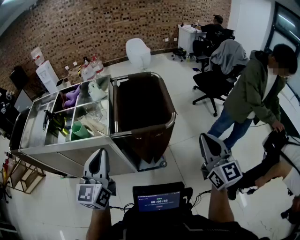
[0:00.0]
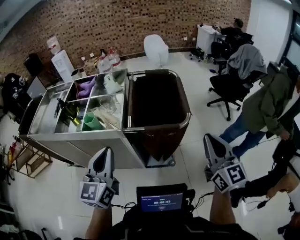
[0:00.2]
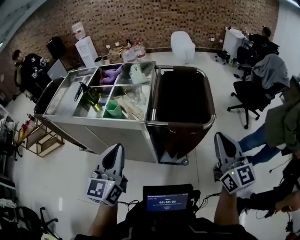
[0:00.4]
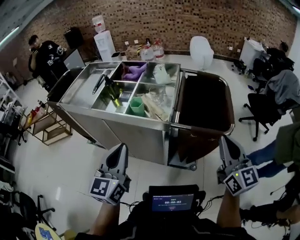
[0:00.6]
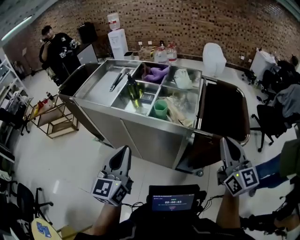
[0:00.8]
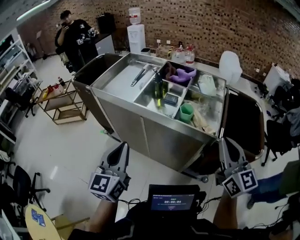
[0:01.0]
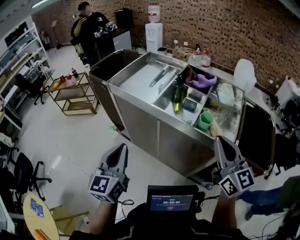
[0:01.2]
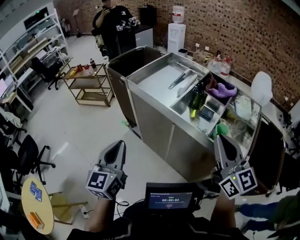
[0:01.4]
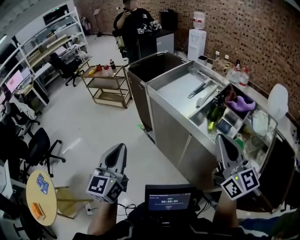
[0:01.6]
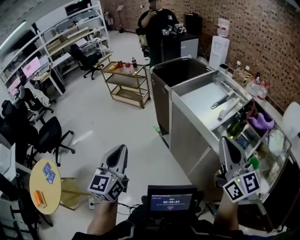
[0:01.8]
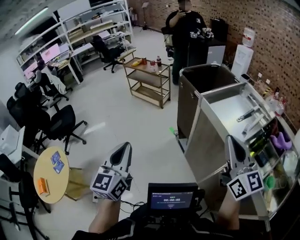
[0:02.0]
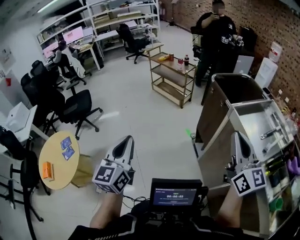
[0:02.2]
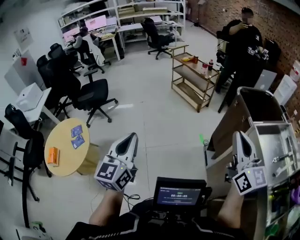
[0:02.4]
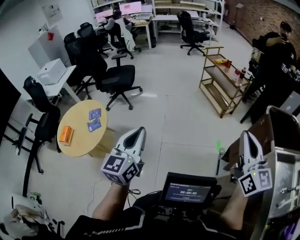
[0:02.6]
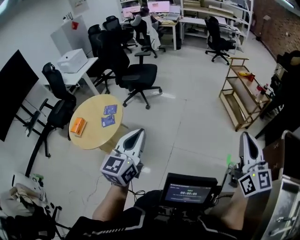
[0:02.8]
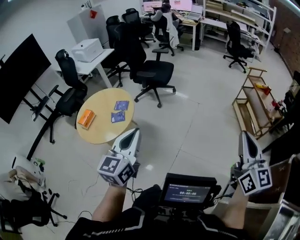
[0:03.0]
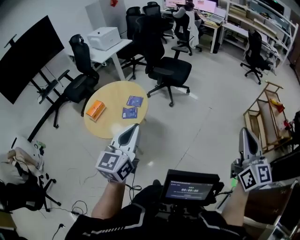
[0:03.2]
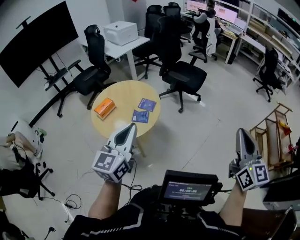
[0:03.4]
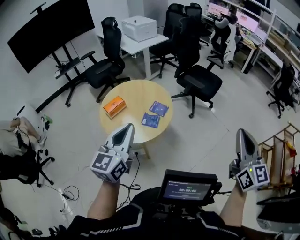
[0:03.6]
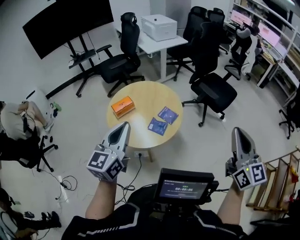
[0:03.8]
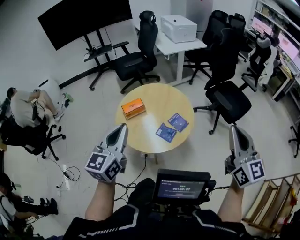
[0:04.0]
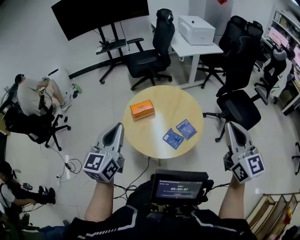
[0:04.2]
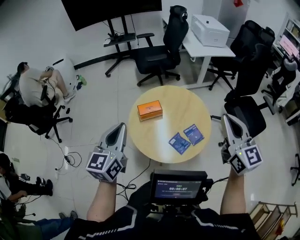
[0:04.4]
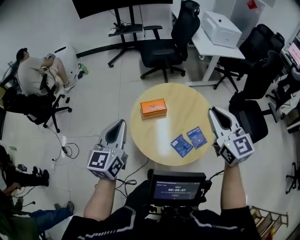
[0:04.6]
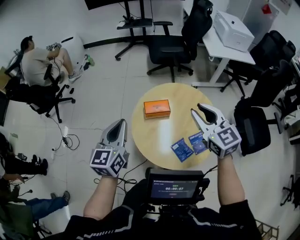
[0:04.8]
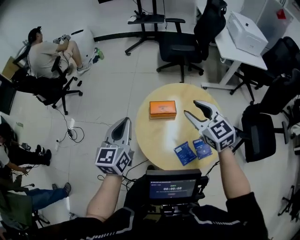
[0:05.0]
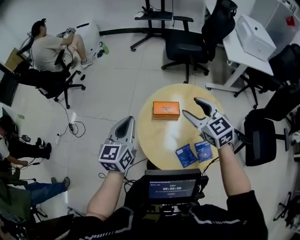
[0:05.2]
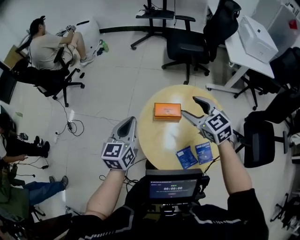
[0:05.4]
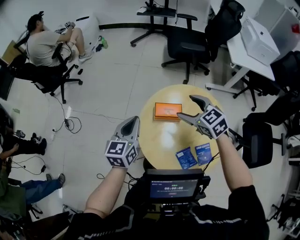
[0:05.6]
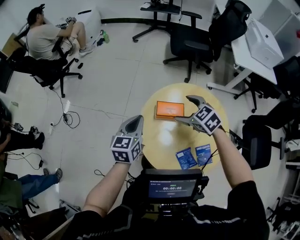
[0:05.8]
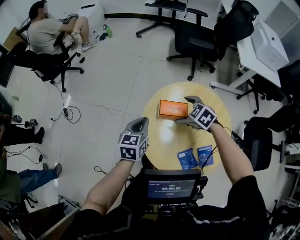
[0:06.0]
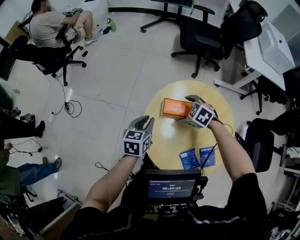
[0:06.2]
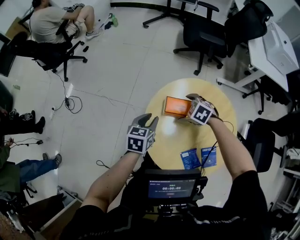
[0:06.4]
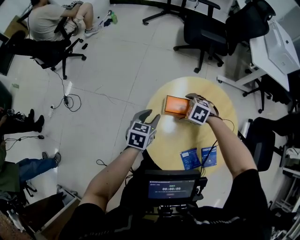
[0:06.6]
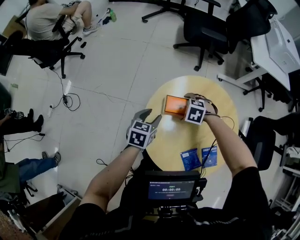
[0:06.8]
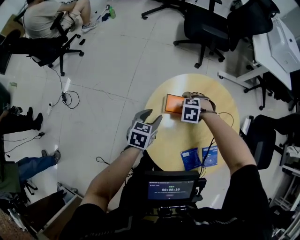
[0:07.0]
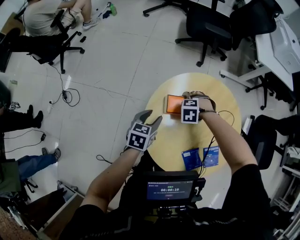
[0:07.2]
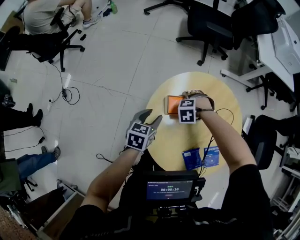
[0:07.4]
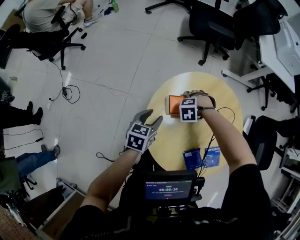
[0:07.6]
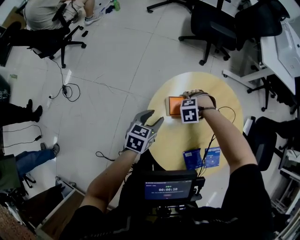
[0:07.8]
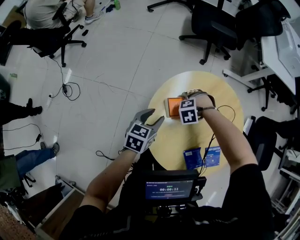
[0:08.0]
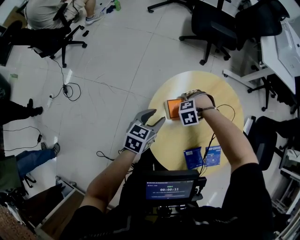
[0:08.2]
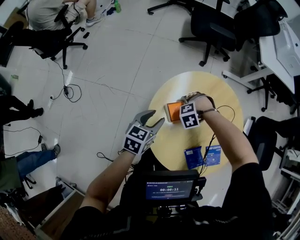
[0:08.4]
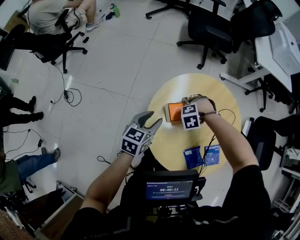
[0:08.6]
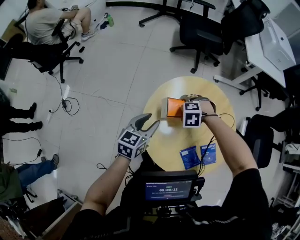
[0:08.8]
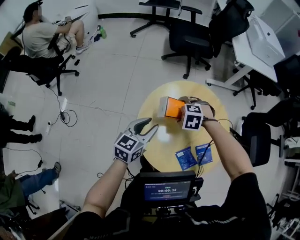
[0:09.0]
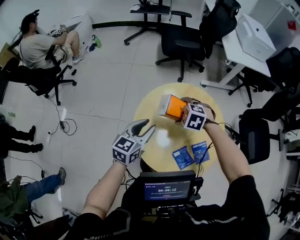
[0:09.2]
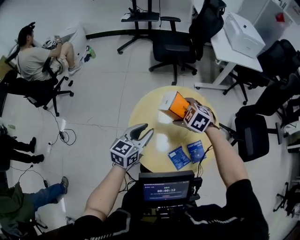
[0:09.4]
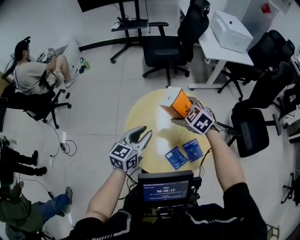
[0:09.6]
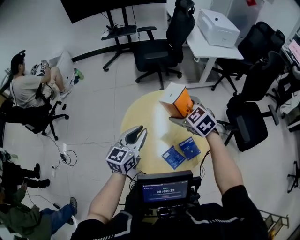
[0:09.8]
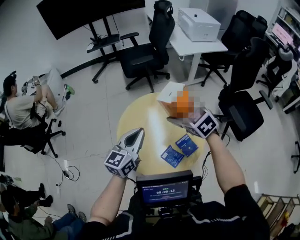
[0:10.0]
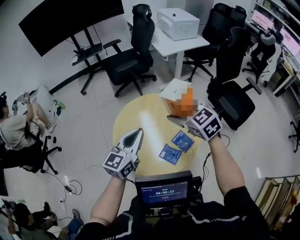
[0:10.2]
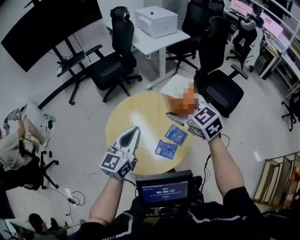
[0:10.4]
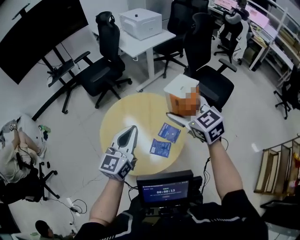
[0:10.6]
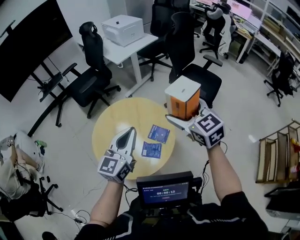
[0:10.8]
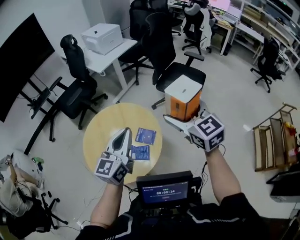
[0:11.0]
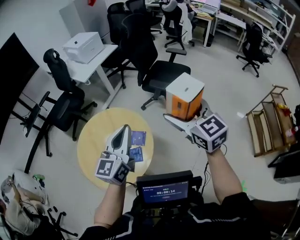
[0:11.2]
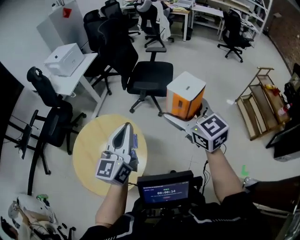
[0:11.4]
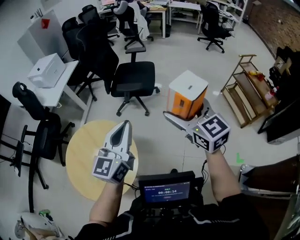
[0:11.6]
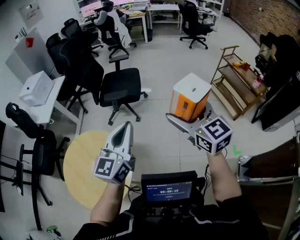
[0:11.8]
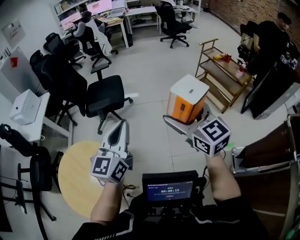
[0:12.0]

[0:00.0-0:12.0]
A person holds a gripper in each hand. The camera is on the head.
0:00.0 to 0:01.6: The pair of grippers is taken approximately 70 cm. The left gripper swivels roughly 50 degrees; the right gripper rotates approximately 60 degrees.
0:01.6 to 0:03.0: Both grippers are carried some 90 cm. The left gripper rotates about 70 degrees; the right gripper swivels approximately 60 degrees.
0:03.0 to 0:04.4: Both grippers are carried roughly 90 cm. The right gripper turns by roughly 70 degrees. Meanwhile the left gripper swivels approximately 60 degrees.
0:04.4 to 0:06.0: The left gripper heads downward, covering some 30 cm, and changes its angle by some 30 degrees, while the right gripper changes place by some 60 cm, tilts its fingers about 50 degrees downward, and opens.
0:06.0 to 0:07.6: The two grippers go roughly 20 cm downward. The right gripper tips its fingers downward by roughly 30 degrees; the left gripper opens.
0:07.6 to 0:09.0: The two grippers go some 15 cm upward. The left gripper swivels approximately 20 degrees; the right gripper swivels some 30 degrees.
0:09.0 to 0:10.4: The right gripper moves about 50 cm, and tips its fingers upward by roughly 50 degrees. The left gripper shifts by about 35 cm, turns by approximately 30 degrees, and closes its fingers.
0:10.4 to 0:12.0: The pair of grippers is taken roughly 70 cm. The left gripper changes its angle by approximately 50 degrees; the right gripper swivels some 70 degrees.

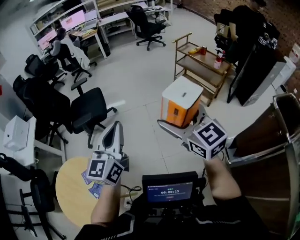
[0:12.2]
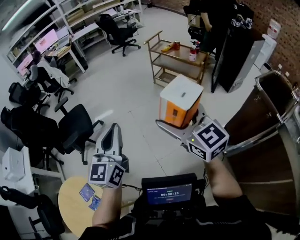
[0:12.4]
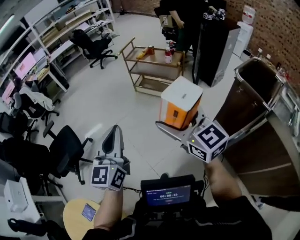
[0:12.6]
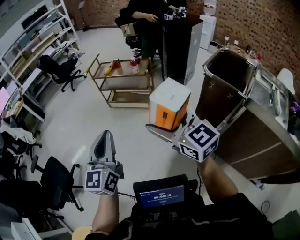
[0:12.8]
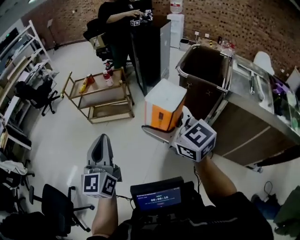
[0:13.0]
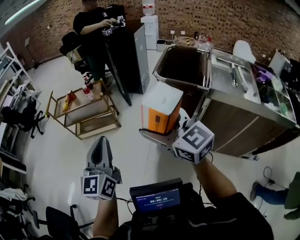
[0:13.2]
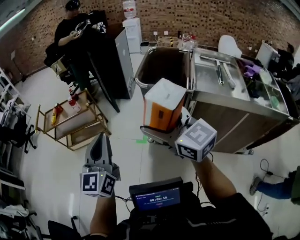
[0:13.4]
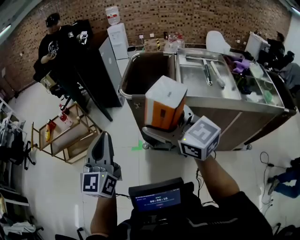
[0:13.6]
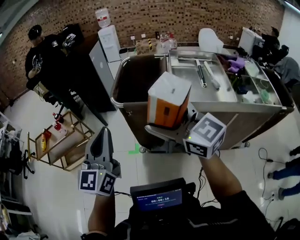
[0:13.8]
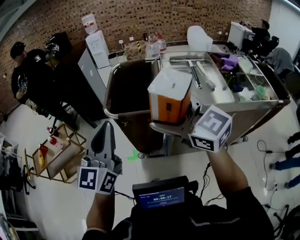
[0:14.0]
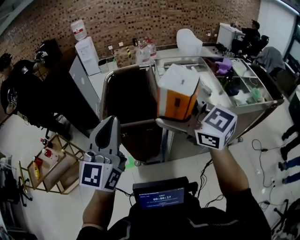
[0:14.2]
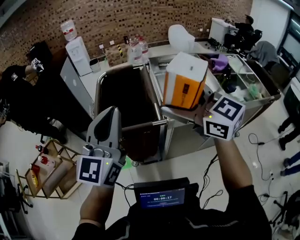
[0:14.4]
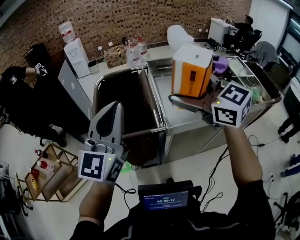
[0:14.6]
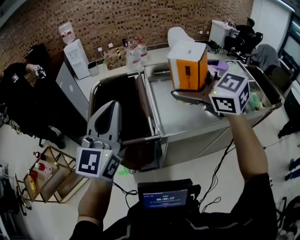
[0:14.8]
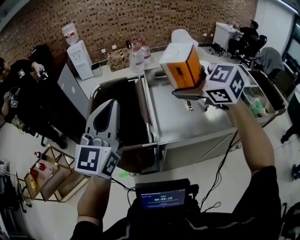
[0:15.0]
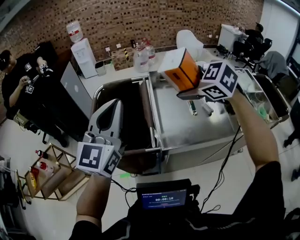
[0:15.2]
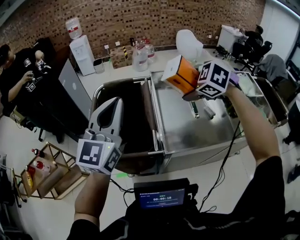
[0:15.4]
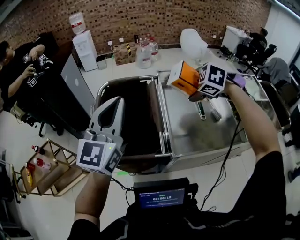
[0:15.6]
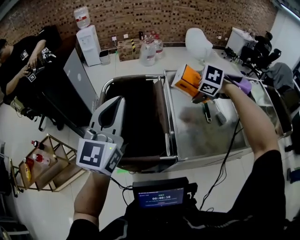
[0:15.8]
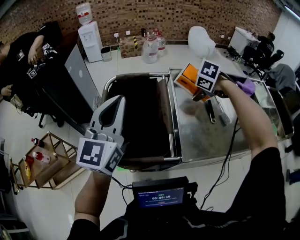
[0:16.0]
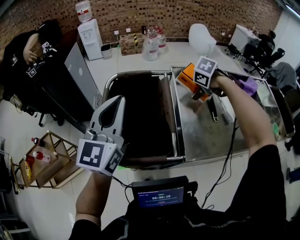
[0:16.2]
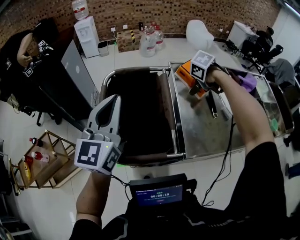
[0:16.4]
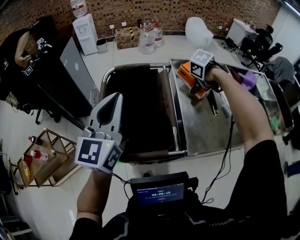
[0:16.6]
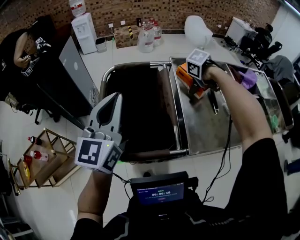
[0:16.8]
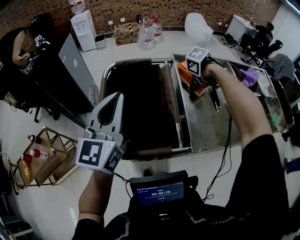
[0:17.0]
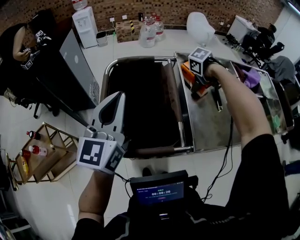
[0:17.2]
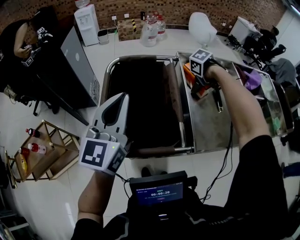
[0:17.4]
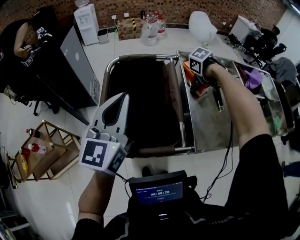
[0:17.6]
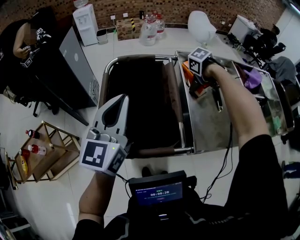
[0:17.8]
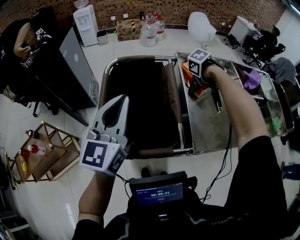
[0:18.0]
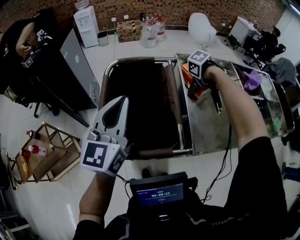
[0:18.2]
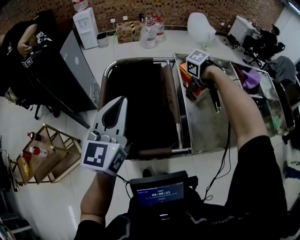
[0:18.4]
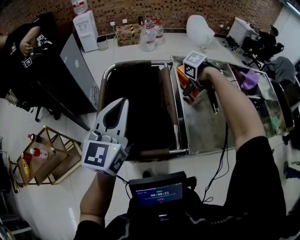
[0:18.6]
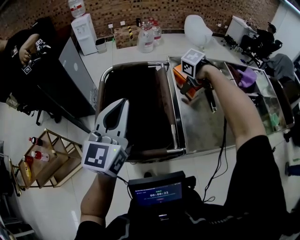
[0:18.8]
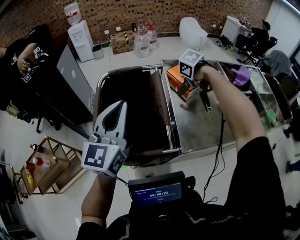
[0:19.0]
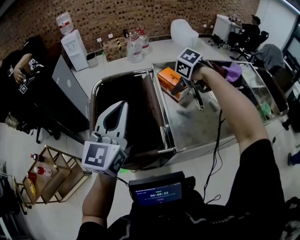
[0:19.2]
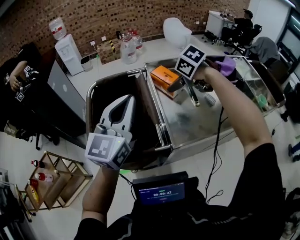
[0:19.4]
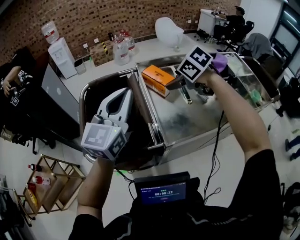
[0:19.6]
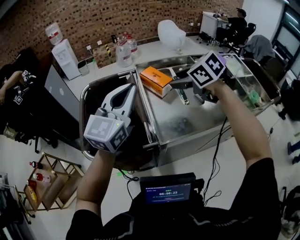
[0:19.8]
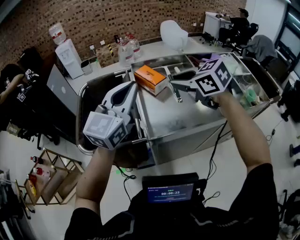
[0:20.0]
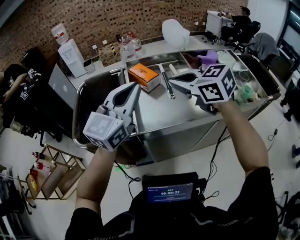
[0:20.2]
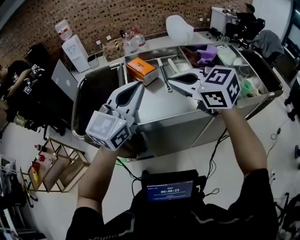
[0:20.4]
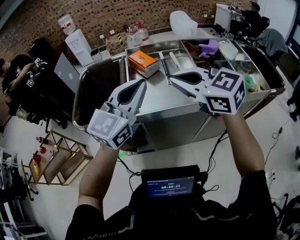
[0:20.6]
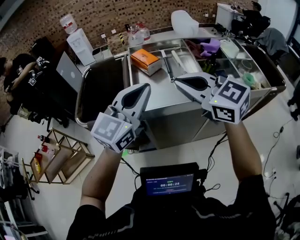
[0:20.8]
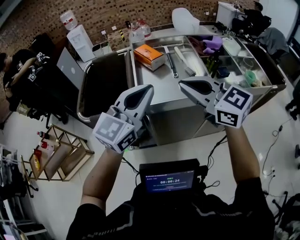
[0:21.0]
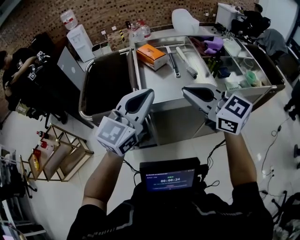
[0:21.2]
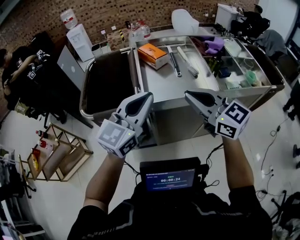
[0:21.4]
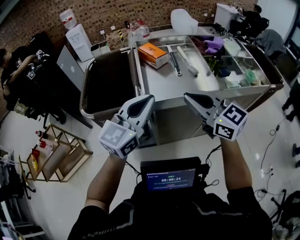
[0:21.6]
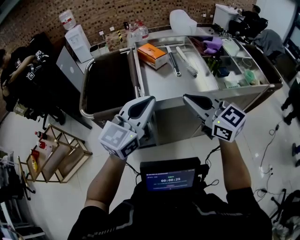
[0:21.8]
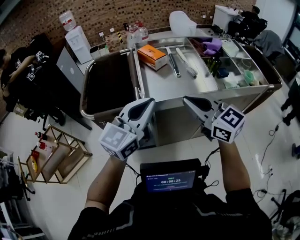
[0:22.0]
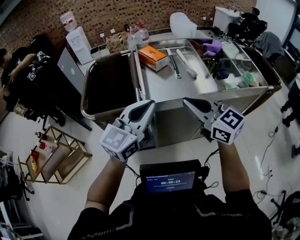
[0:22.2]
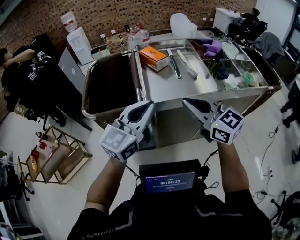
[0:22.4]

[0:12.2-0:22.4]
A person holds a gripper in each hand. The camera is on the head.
0:12.2 to 0:13.6: The pair of grippers is taken roughly 80 cm. The right gripper rotates some 60 degrees. Meanwhile the left gripper rotates some 70 degrees.
0:13.6 to 0:15.2: The two grippers travel together, approximately 50 cm. The right gripper tips its fingers downward by roughly 40 degrees, while the left gripper changes its angle by roughly 30 degrees.
0:15.2 to 0:16.6: The right gripper goes approximately 20 cm downward, and tilts its fingers approximately 50 degrees downward, while the left gripper ends up about 20 cm from where it was.
0:16.6 to 0:18.0: The right gripper goes roughly 5 cm downward.
0:18.0 to 0:19.4: The right gripper heads upward, covering approximately 15 cm, and swivels roughly 30 degrees, while the left gripper changes place by approximately 15 cm.
0:19.4 to 0:21.0: The right gripper goes about 40 cm backward, angles its fingers upward, by roughly 60 degrees, and closes. Meanwhile the left gripper is displaced backward and to the right by about 35 cm.
0:21.0 to 0:22.4: The right gripper shifts by roughly 10 cm. The left gripper travels to the left by approximately 5 cm.

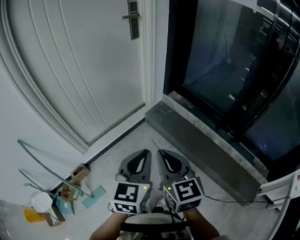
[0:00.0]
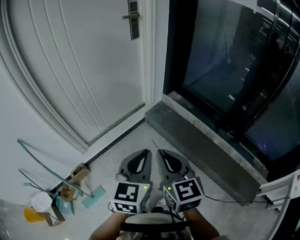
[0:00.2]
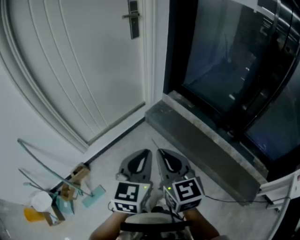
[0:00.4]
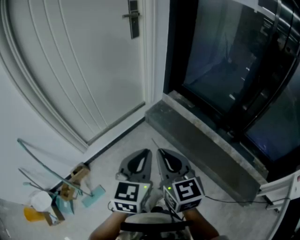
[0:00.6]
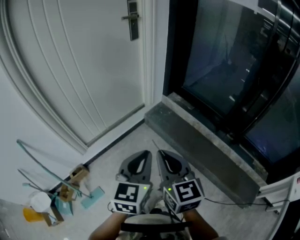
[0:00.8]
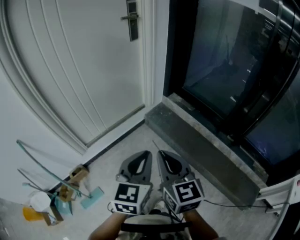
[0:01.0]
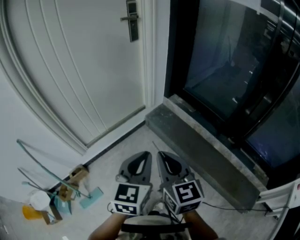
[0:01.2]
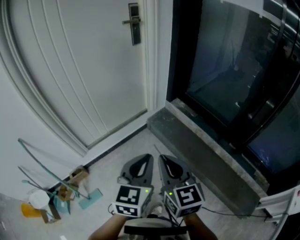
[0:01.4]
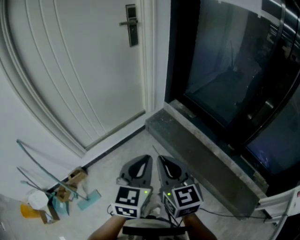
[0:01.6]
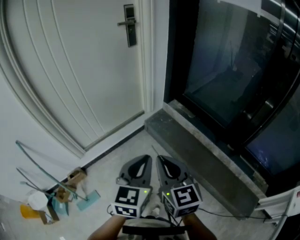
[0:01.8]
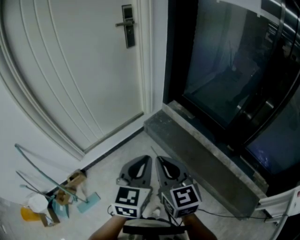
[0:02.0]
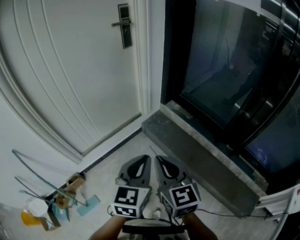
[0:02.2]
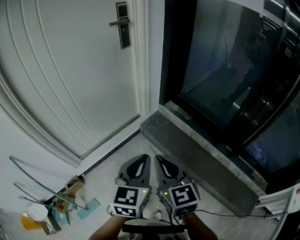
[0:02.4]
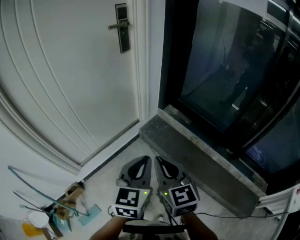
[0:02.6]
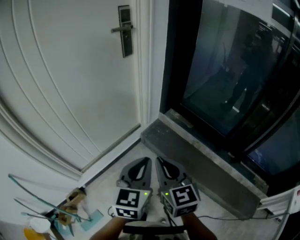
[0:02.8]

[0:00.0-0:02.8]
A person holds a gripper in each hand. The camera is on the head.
0:00.0 to 0:01.4: The left gripper ends up approximately 5 cm from where it was. Meanwhile the right gripper changes place by roughly 5 cm.
0:01.4 to 0:02.8: The grippers both shift forward by some 15 cm.
